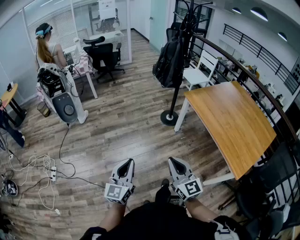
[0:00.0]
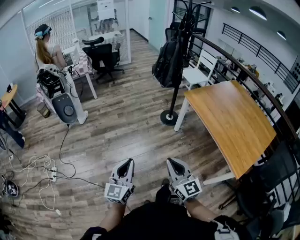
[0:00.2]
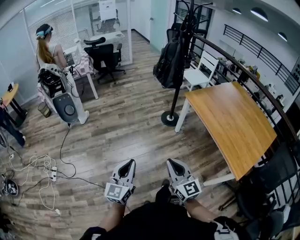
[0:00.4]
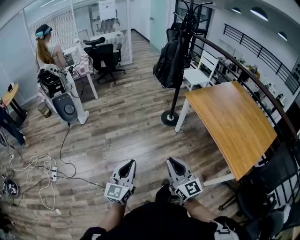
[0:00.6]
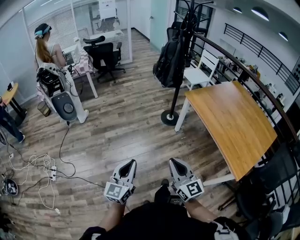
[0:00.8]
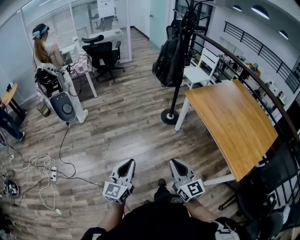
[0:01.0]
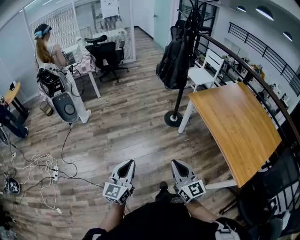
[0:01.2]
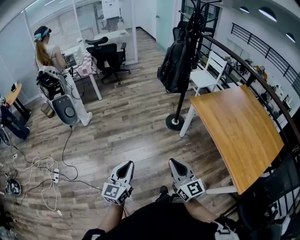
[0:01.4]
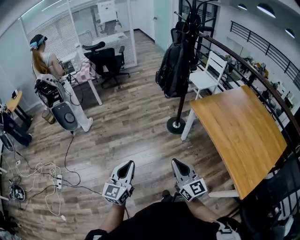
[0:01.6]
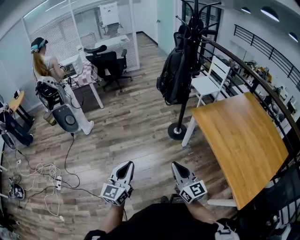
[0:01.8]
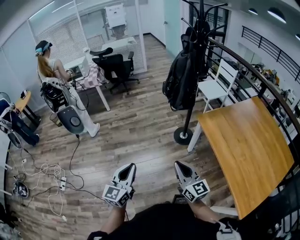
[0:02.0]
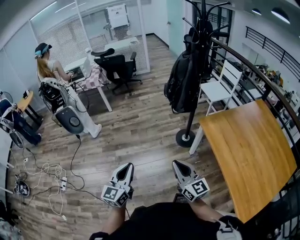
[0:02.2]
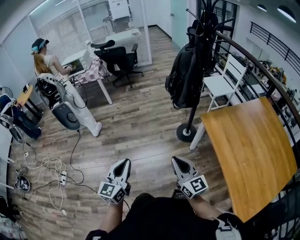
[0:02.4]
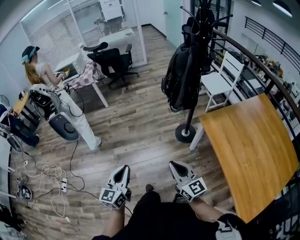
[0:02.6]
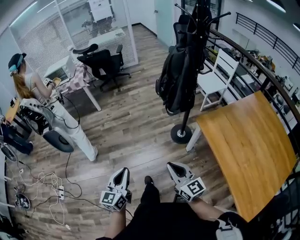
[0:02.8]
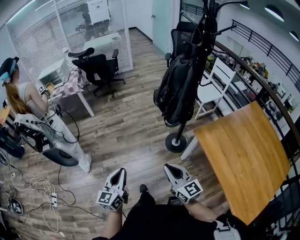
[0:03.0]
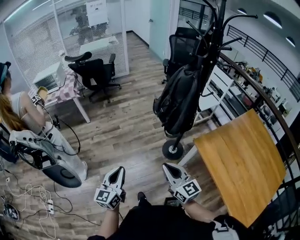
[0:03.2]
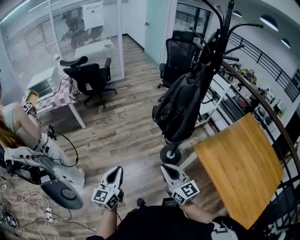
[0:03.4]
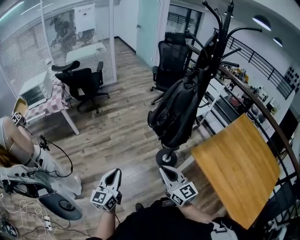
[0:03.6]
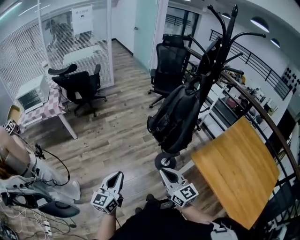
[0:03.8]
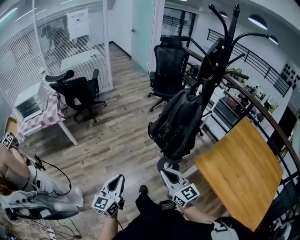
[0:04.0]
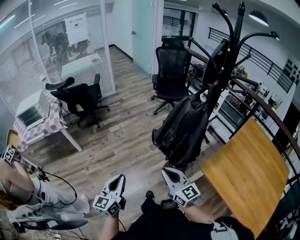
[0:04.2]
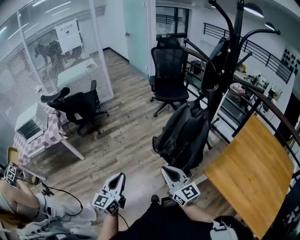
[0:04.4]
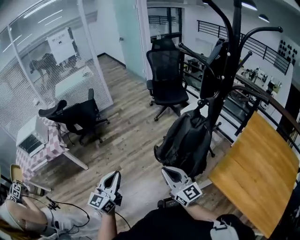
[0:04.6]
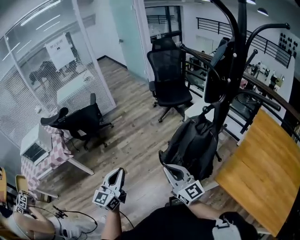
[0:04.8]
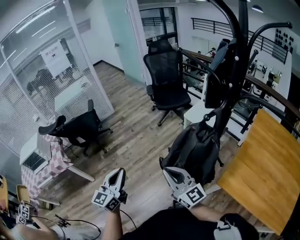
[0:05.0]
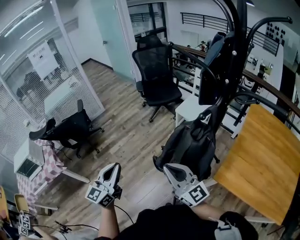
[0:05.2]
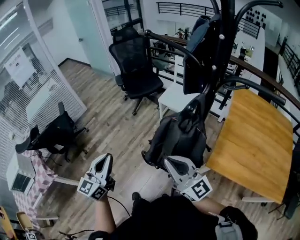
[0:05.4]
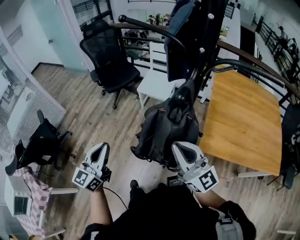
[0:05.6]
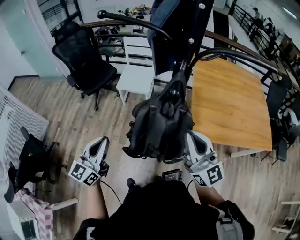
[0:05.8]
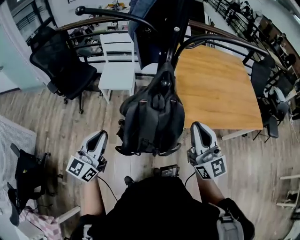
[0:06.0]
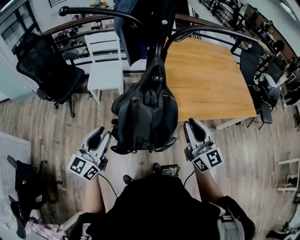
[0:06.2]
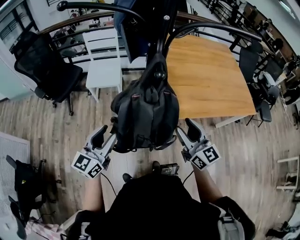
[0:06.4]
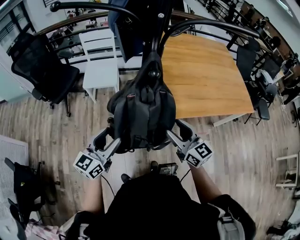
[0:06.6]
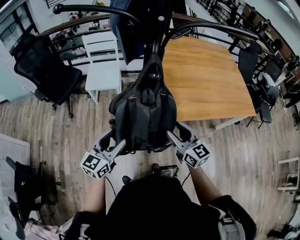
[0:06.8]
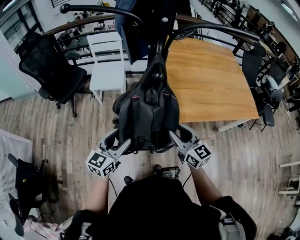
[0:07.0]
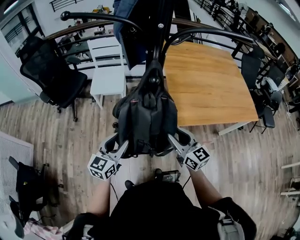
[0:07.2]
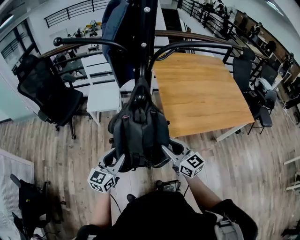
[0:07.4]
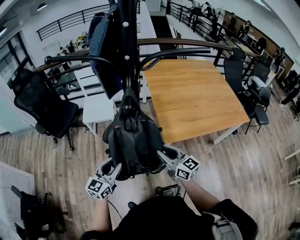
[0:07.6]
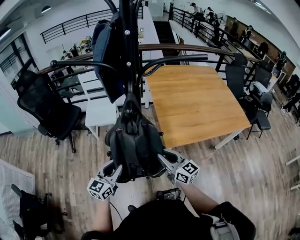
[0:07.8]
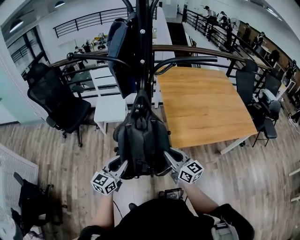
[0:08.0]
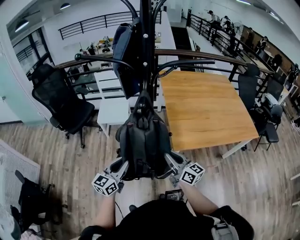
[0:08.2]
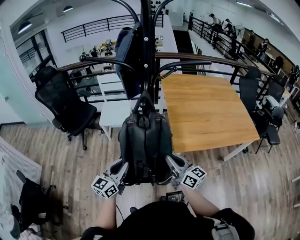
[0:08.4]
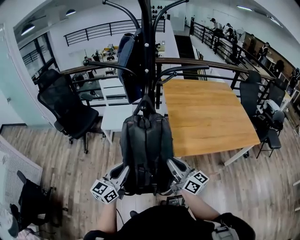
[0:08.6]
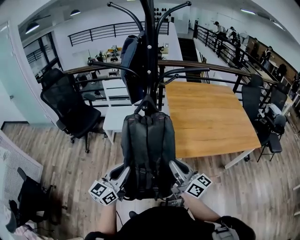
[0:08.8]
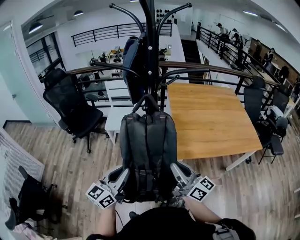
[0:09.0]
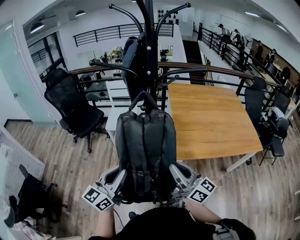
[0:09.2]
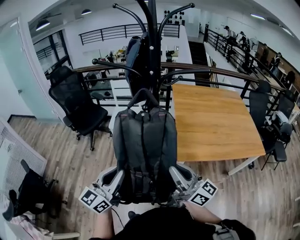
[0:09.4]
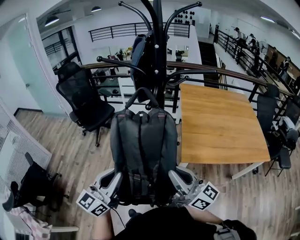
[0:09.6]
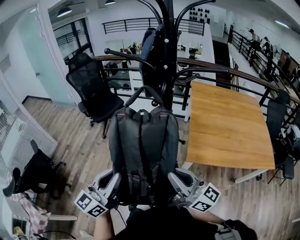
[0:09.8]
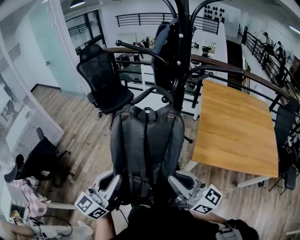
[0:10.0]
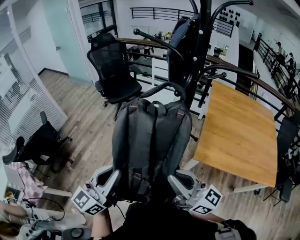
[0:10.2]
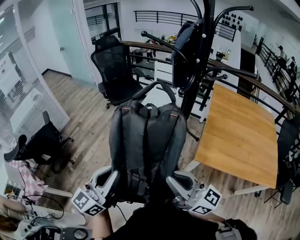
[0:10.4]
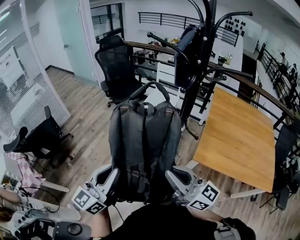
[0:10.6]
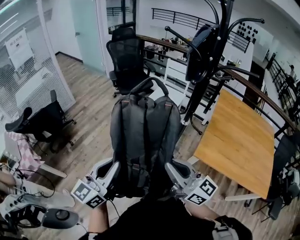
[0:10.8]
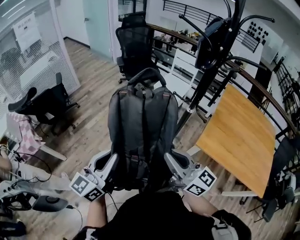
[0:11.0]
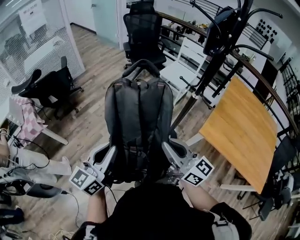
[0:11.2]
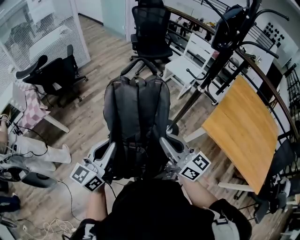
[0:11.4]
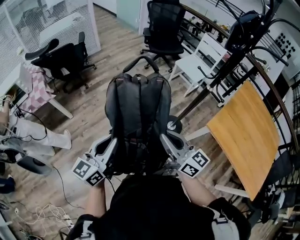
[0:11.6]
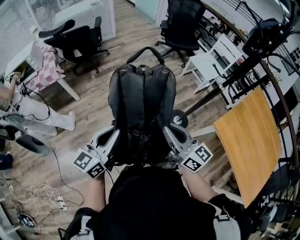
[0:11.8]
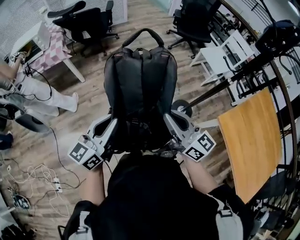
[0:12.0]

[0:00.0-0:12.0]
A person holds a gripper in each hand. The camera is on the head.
0.0 to 1.6 s: Both grippers move forward, approximately 15 cm.
1.6 to 3.0 s: The grippers both shift forward by roughly 30 cm.
3.0 to 4.4 s: The two grippers go some 35 cm forward.
4.4 to 6.0 s: The left gripper moves approximately 35 cm, and changes its angle by about 60 degrees; the right gripper ends up approximately 20 cm from where it was, and rotates approximately 70 degrees.
6.0 to 7.6 s: The left gripper travels downward and to the right by roughly 15 cm, and opens up. Meanwhile the right gripper shifts approximately 15 cm downward, changes its angle by about 30 degrees, and opens, then closes once more.
7.6 to 9.0 s: Both grippers travel together upward and backward, about 15 cm. The right gripper swivels roughly 20 degrees.
9.0 to 10.4 s: The right gripper changes place by approximately 10 cm, and swivels roughly 40 degrees; the left gripper shifts by about 15 cm, and rotates some 30 degrees.
10.4 to 12.0 s: The right gripper changes place by some 20 cm, and rotates some 40 degrees, while the left gripper ends up some 30 cm from where it was, and swivels roughly 40 degrees.

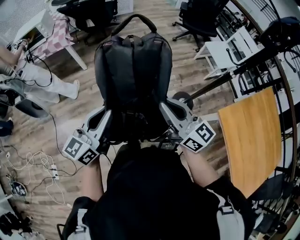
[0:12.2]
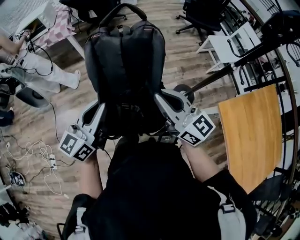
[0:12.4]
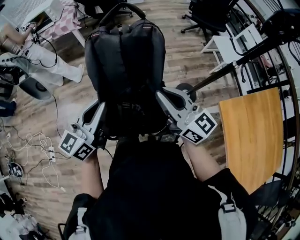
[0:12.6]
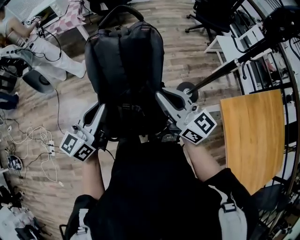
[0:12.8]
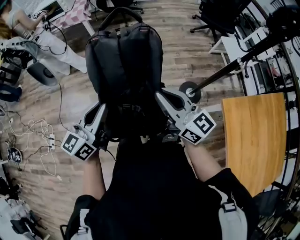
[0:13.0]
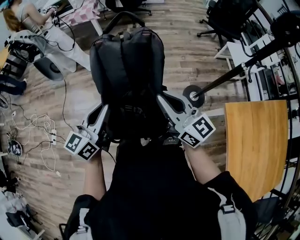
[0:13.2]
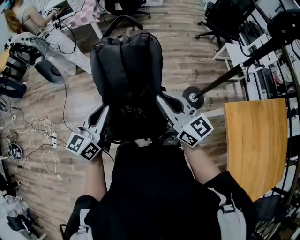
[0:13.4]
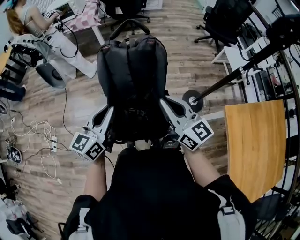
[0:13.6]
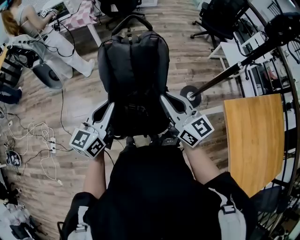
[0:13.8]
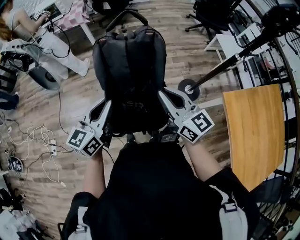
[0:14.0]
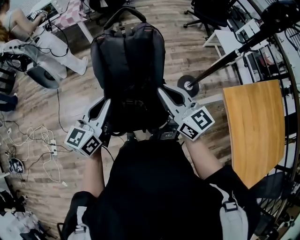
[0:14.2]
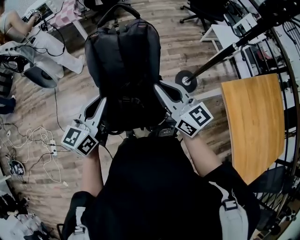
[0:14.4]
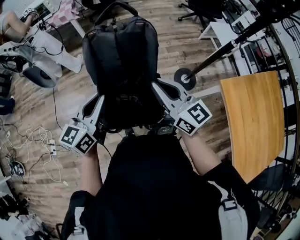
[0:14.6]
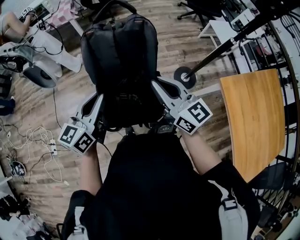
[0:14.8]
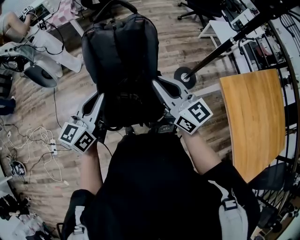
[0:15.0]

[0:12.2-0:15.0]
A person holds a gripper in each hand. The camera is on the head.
12.2 to 13.6 s: Both grippers move backward, some 15 cm.
13.6 to 15.0 s: The grippers make only small movements.

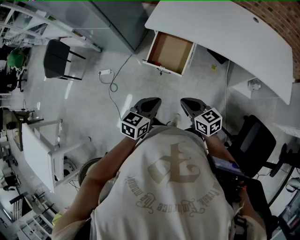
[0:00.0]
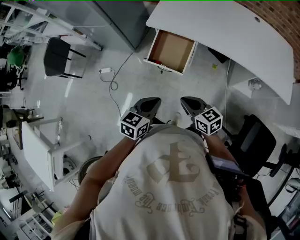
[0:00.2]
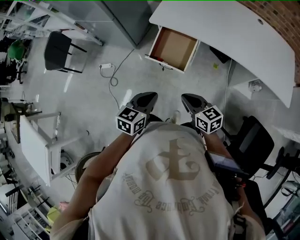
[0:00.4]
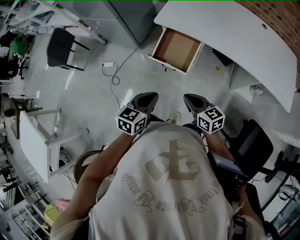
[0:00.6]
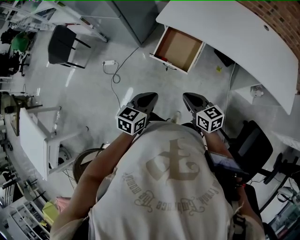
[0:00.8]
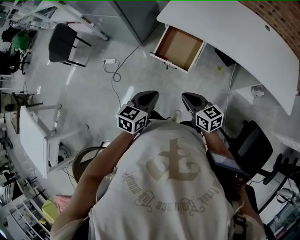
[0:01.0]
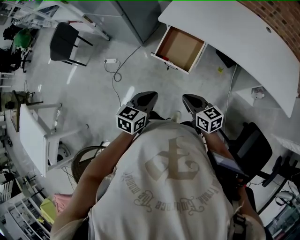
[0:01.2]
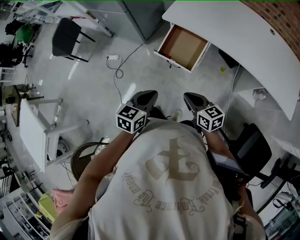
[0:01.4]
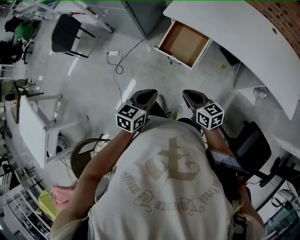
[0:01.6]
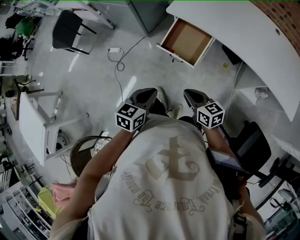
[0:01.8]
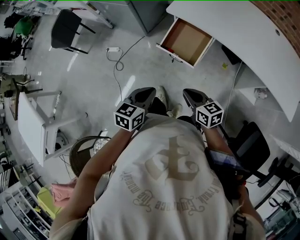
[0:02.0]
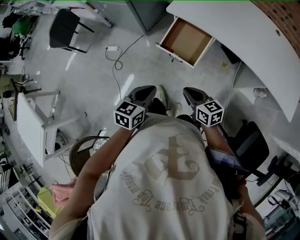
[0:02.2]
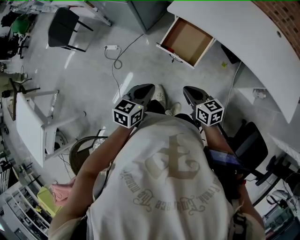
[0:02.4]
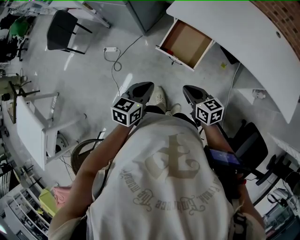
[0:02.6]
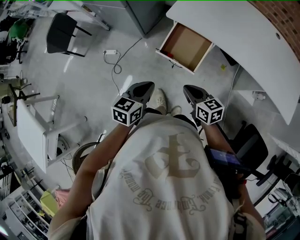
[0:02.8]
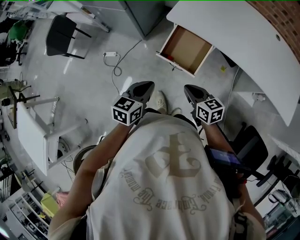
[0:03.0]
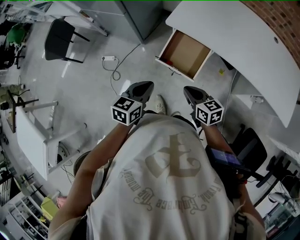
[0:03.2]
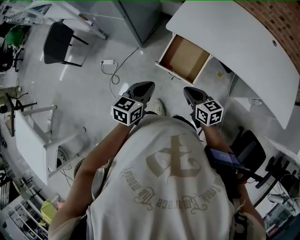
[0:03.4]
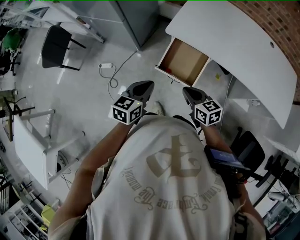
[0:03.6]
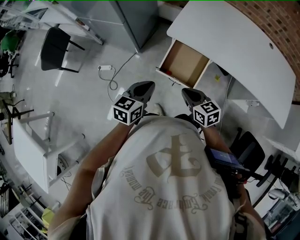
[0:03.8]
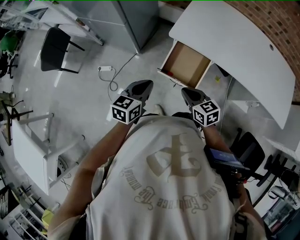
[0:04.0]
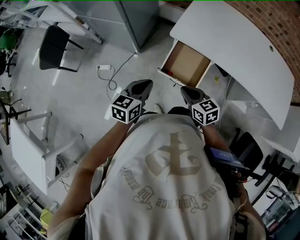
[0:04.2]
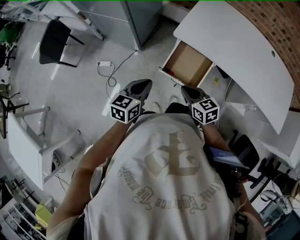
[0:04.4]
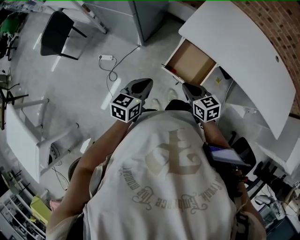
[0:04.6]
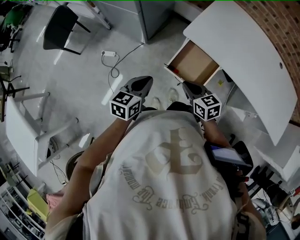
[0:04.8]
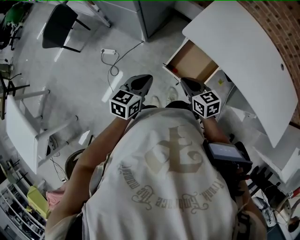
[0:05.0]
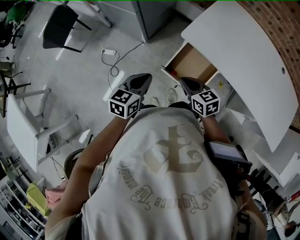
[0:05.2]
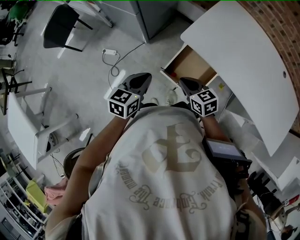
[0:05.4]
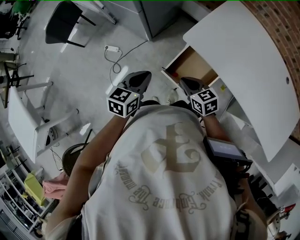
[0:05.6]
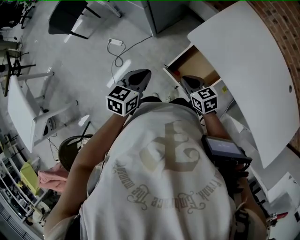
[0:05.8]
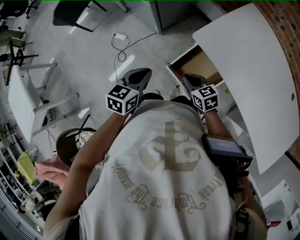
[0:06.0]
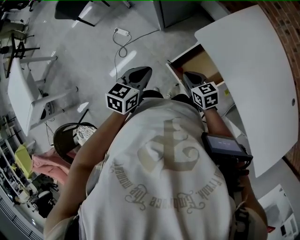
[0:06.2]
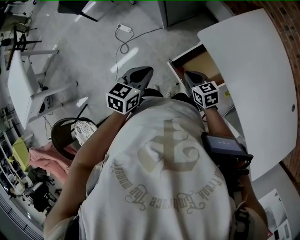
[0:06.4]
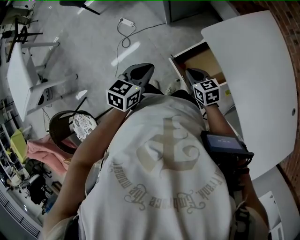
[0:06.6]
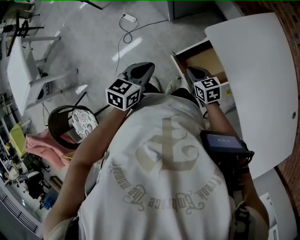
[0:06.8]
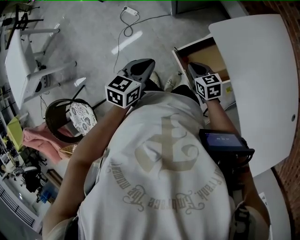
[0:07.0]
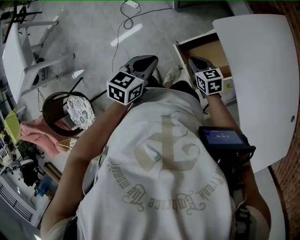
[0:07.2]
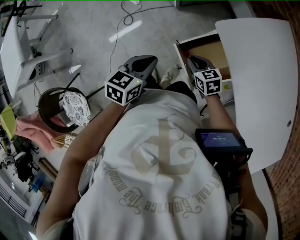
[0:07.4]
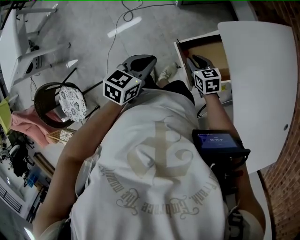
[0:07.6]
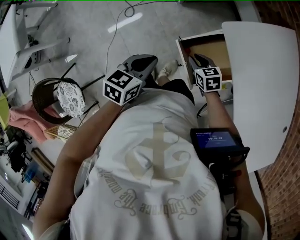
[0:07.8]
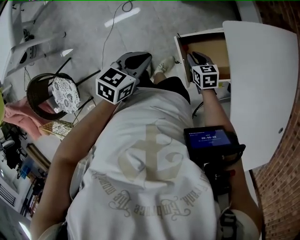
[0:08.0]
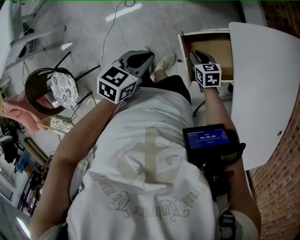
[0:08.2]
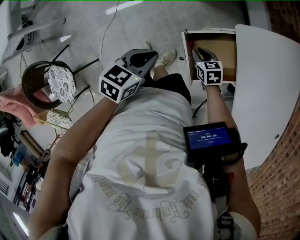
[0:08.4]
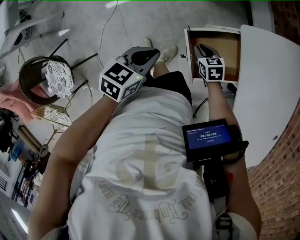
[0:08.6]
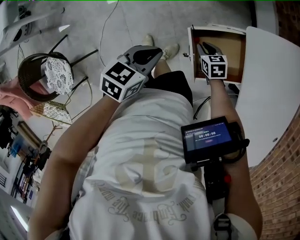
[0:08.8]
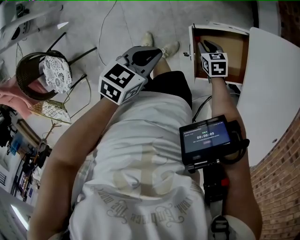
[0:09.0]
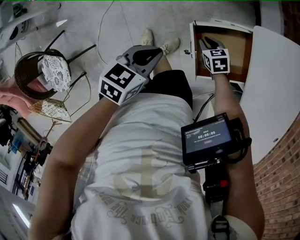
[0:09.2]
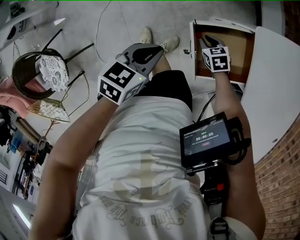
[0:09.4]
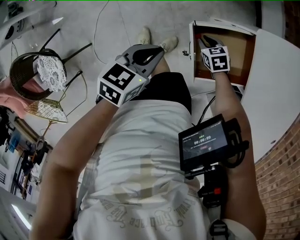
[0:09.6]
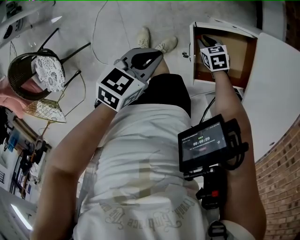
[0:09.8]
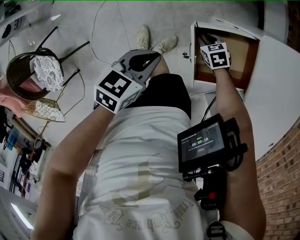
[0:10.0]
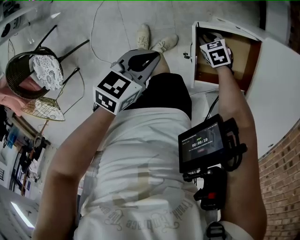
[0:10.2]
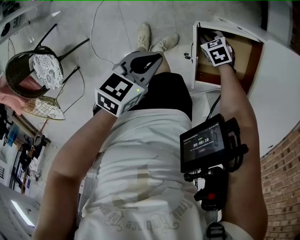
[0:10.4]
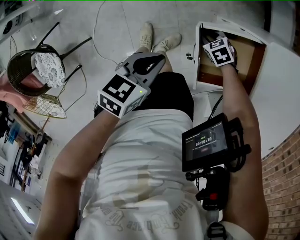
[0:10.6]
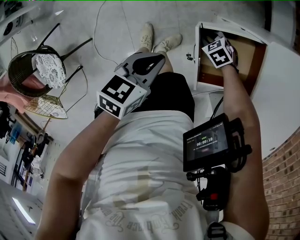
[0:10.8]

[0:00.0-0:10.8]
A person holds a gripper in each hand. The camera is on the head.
0.0 to 1.6 s: The left gripper changes place by about 5 cm.
1.6 to 3.0 s: Both grippers travel together forward, about 10 cm.
3.0 to 4.6 s: The grippers both shift forward and to the left by some 15 cm.
4.6 to 6.2 s: The left gripper travels forward by approximately 5 cm, while the right gripper travels forward and downward by about 10 cm, and rotates approximately 20 degrees.
6.2 to 7.8 s: The right gripper travels downward by approximately 10 cm, while the left gripper heads downward and backward, covering about 10 cm.
7.8 to 9.2 s: The left gripper moves downward, approximately 5 cm. Meanwhile the right gripper shifts some 10 cm downward.
9.2 to 10.8 s: The right gripper shifts roughly 5 cm downward, and swivels some 30 degrees.
